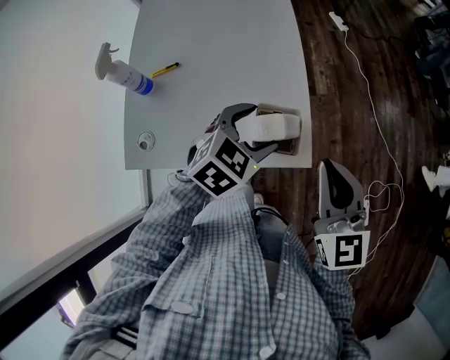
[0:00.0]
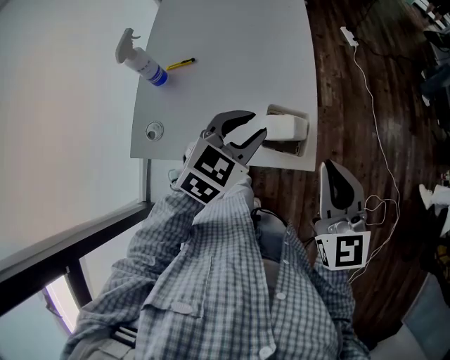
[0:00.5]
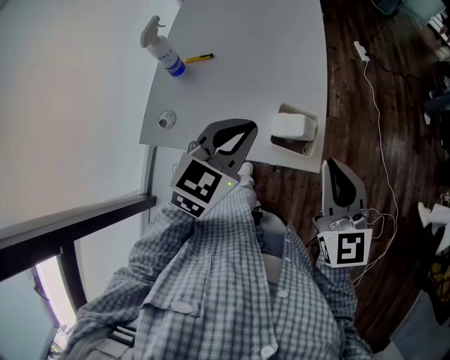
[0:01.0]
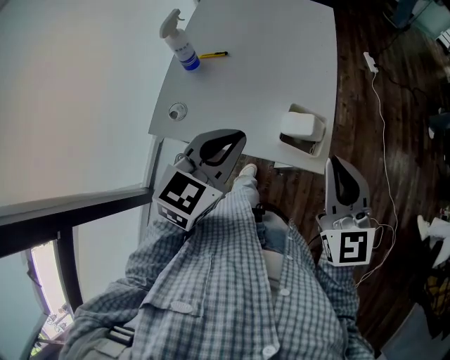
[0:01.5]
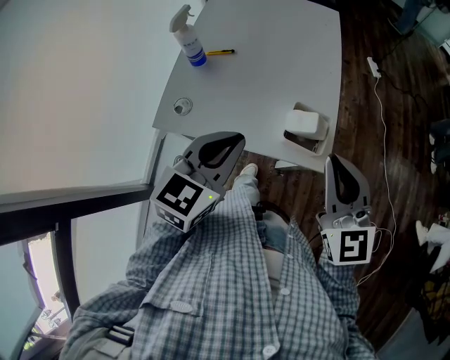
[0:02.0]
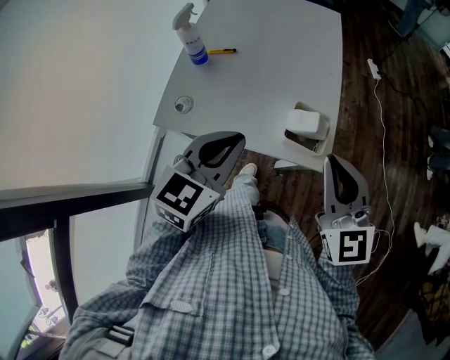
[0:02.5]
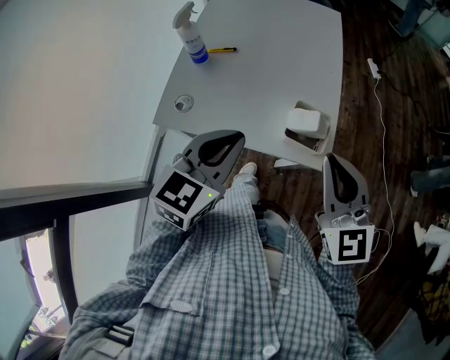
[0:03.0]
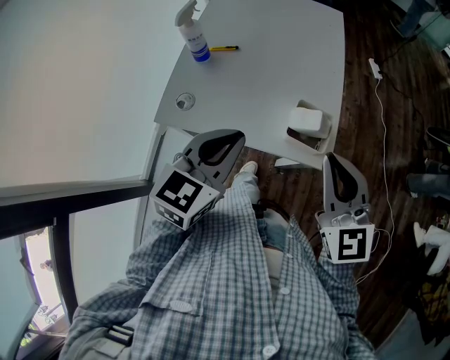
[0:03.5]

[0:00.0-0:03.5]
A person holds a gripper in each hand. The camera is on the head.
0.0 to 2.0 s: The left gripper goes approximately 20 cm to the left, backward and upward, swivels approximately 40 degrees, and closes its fingers. Meanwhile the right gripper travels to the left by some 5 cm.
2.0 to 3.5 s: There are only small adjustments of the grippers.

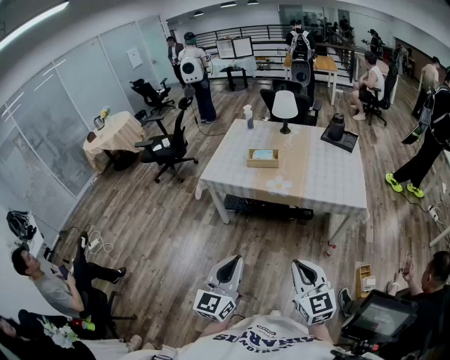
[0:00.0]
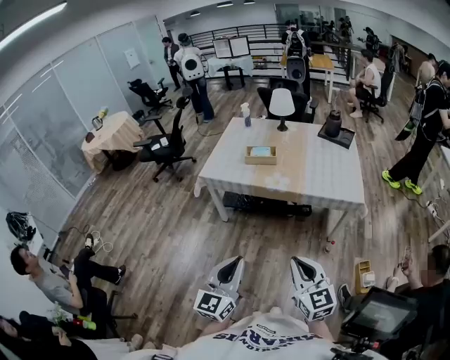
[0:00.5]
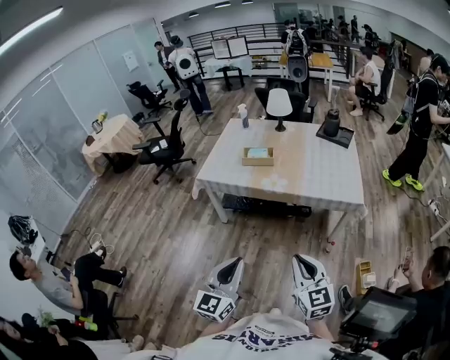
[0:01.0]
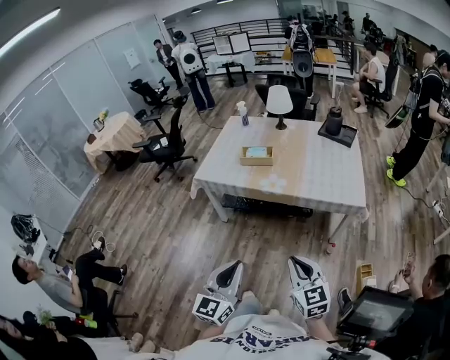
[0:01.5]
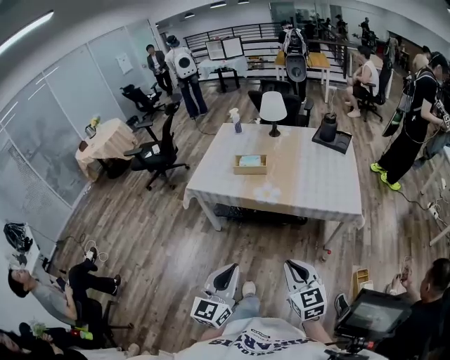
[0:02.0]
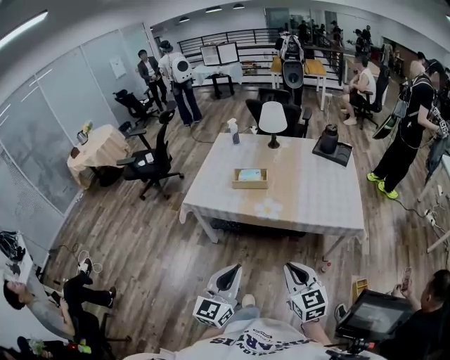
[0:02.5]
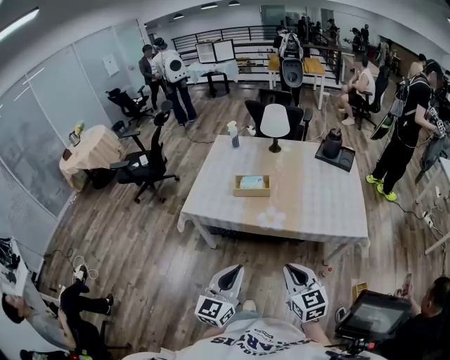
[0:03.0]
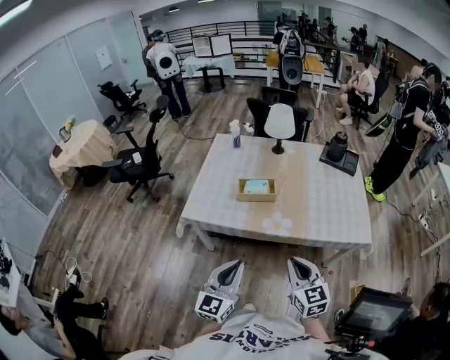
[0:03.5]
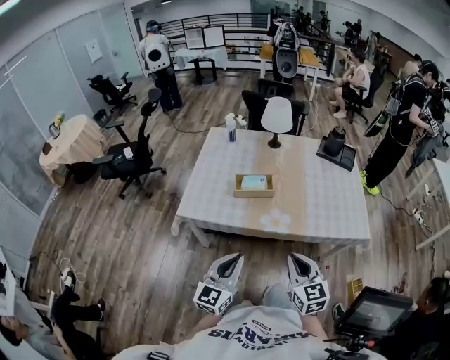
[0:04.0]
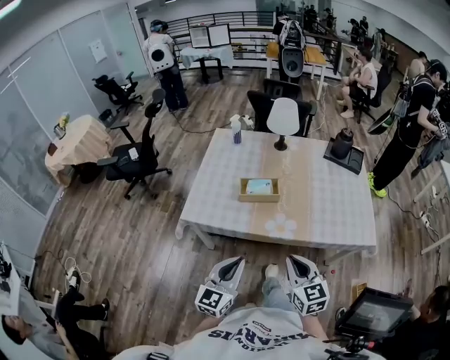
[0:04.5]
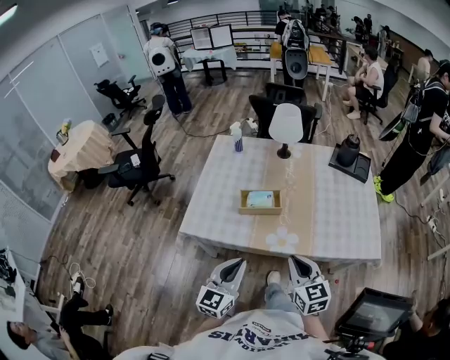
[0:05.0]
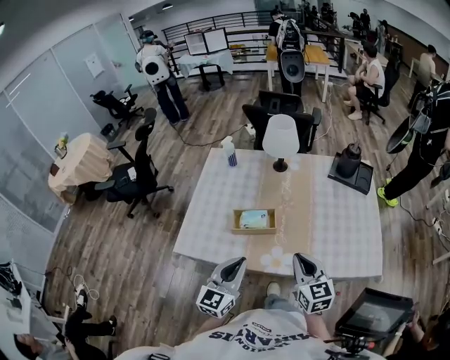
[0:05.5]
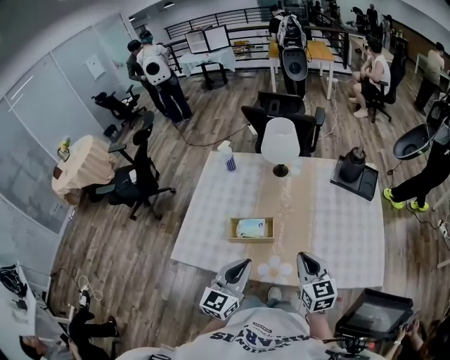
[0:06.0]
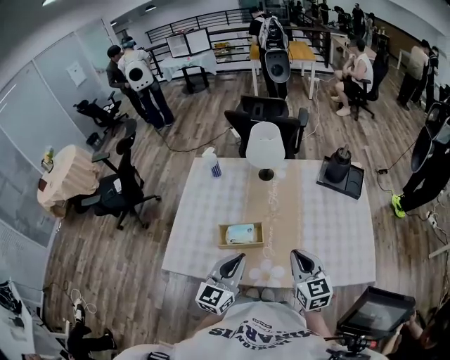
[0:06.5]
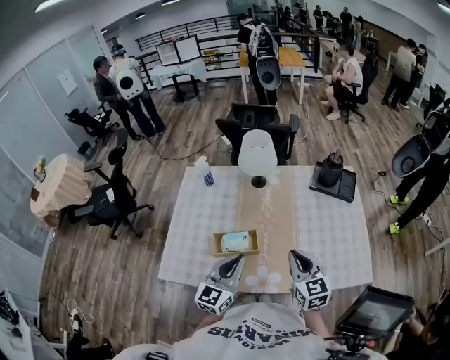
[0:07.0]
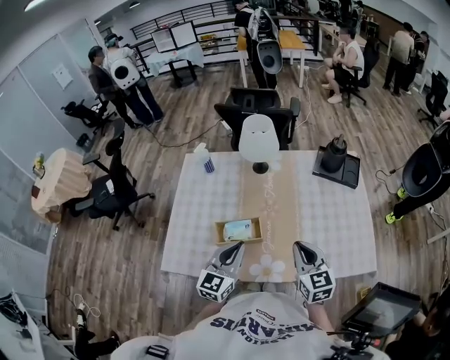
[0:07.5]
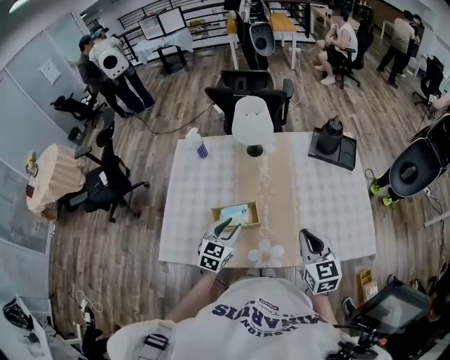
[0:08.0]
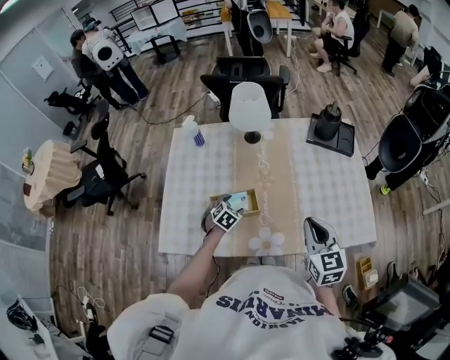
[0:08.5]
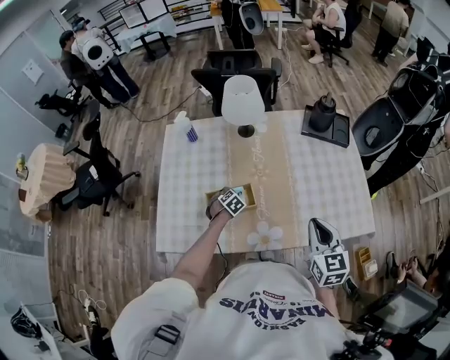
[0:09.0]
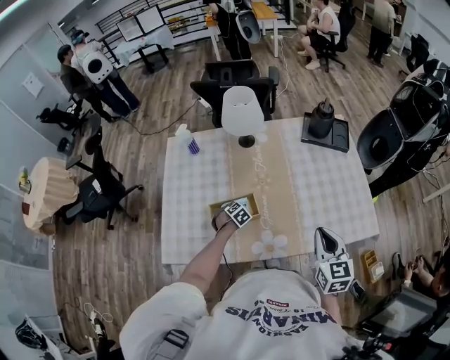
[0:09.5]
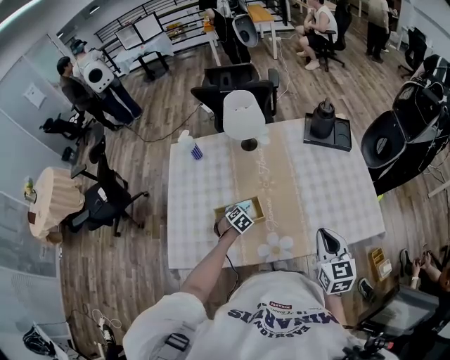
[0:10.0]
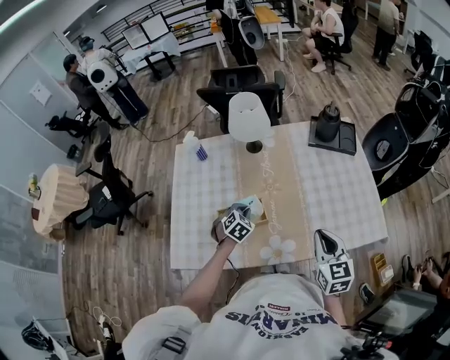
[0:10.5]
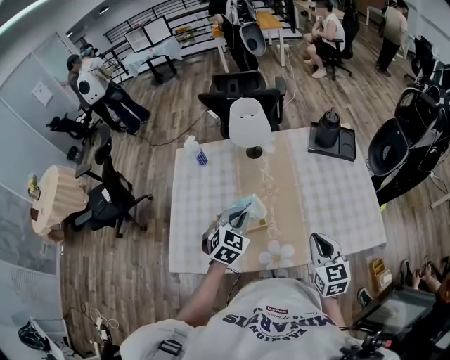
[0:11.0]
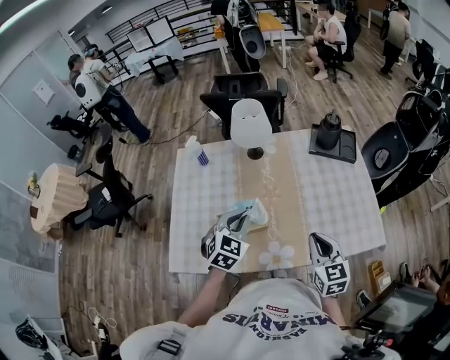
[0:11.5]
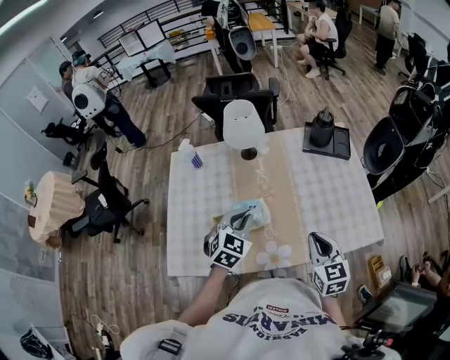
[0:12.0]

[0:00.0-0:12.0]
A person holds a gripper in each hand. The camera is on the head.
0.0 to 2.0 s: The right gripper travels forward and downward by some 10 cm. Meanwhile the left gripper moves forward and to the right, some 10 cm.
2.0 to 4.0 s: Both grippers travel together forward and to the left, about 30 cm.
4.0 to 6.0 s: The two grippers go about 30 cm forward.
6.0 to 8.0 s: The left gripper heads forward and downward, covering some 15 cm, changes its angle by some 30 degrees, and opens its fingers.
8.0 to 10.0 s: The left gripper shifts approximately 20 cm downward, tilts its fingers approximately 40 degrees downward, and closes its fingers; the right gripper shifts by some 5 cm.
10.0 to 12.0 s: The left gripper goes about 30 cm upward, and angles its fingers upward, by roughly 40 degrees.

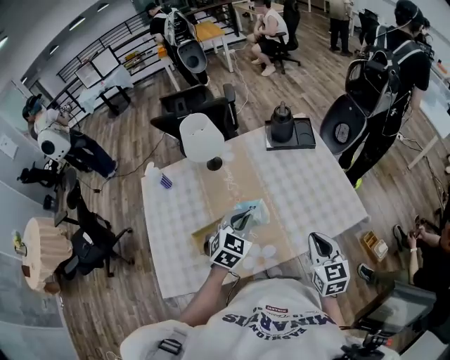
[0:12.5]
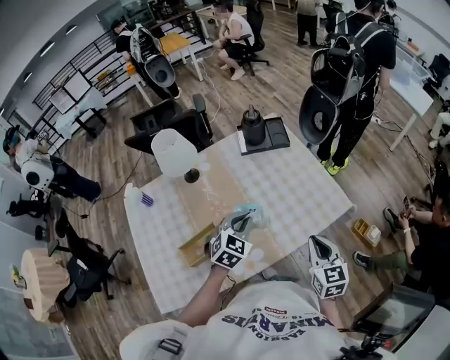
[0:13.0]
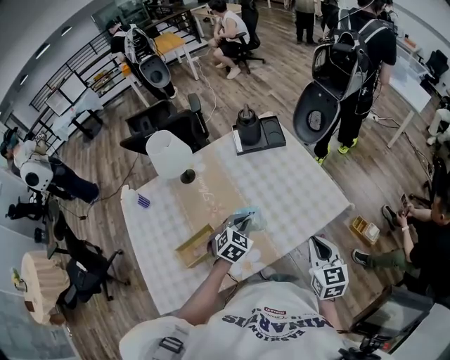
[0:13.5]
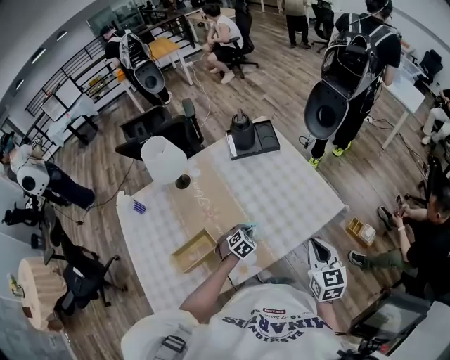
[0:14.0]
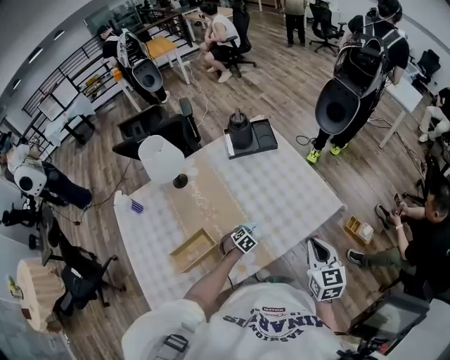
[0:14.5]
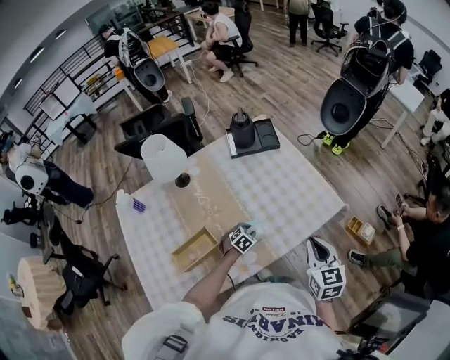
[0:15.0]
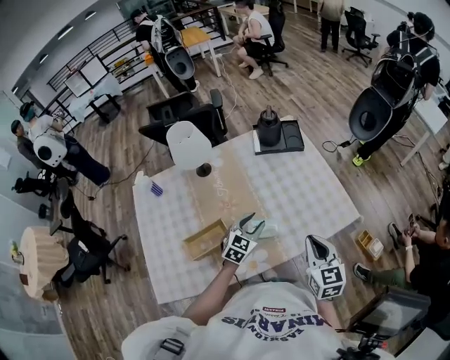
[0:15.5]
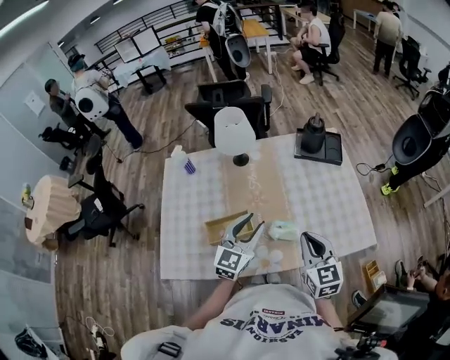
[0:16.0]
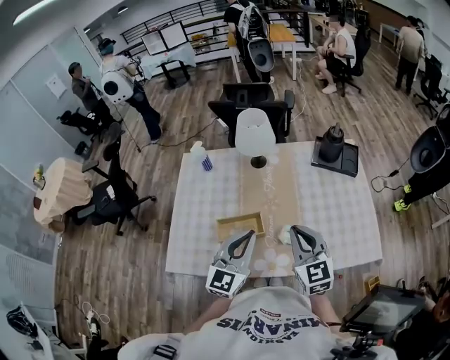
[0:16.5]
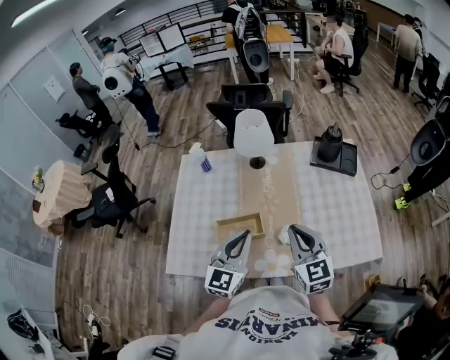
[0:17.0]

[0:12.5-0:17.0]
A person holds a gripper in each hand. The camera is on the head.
12.5 to 14.5 s: The left gripper heads downward, covering about 35 cm, and tips its fingers downward by about 30 degrees. Meanwhile the right gripper goes some 10 cm to the right.
14.5 to 17.0 s: The right gripper shifts by about 25 cm, and changes its angle by about 40 degrees; the left gripper heads upward, covering roughly 40 cm, points its fingers about 60 degrees further upward, and opens, then closes once more.

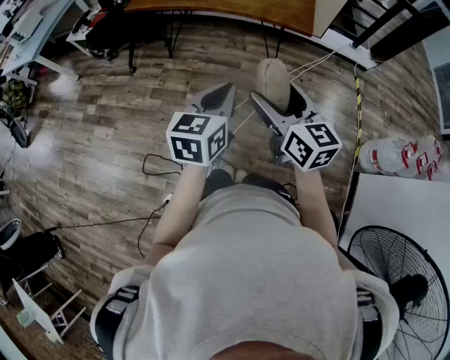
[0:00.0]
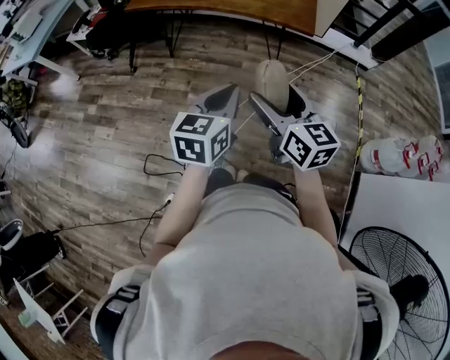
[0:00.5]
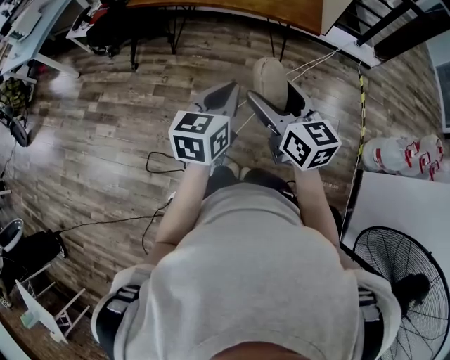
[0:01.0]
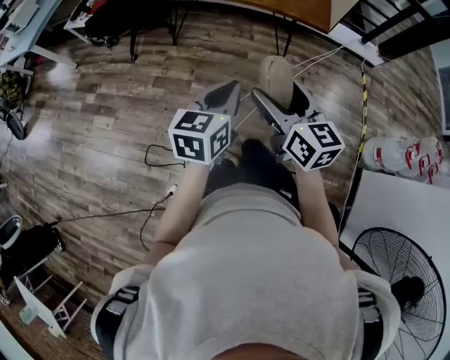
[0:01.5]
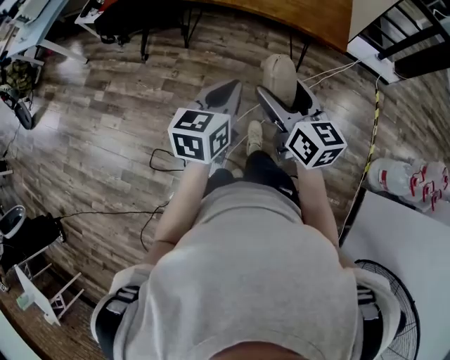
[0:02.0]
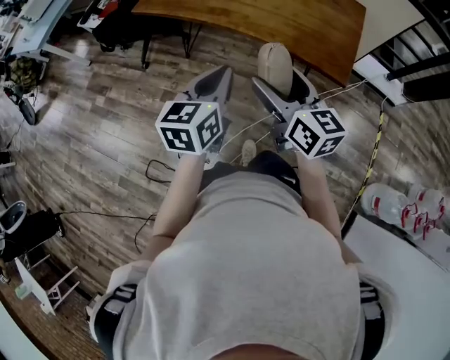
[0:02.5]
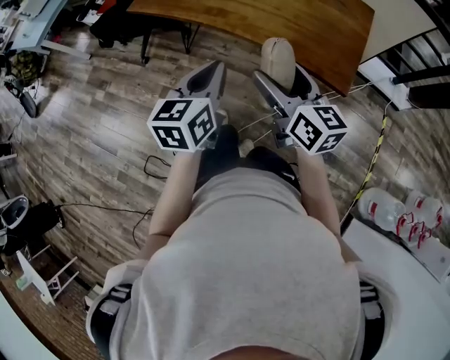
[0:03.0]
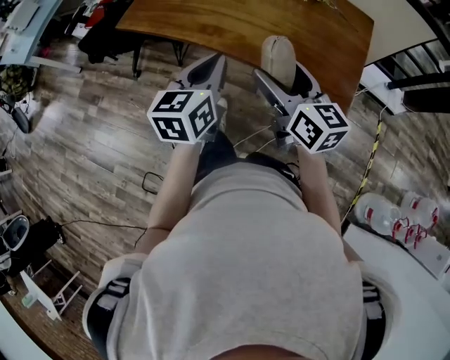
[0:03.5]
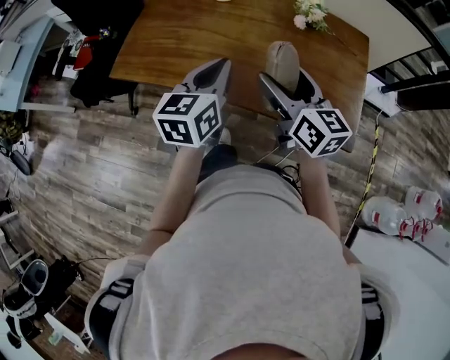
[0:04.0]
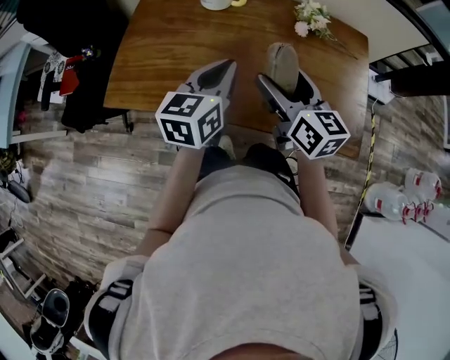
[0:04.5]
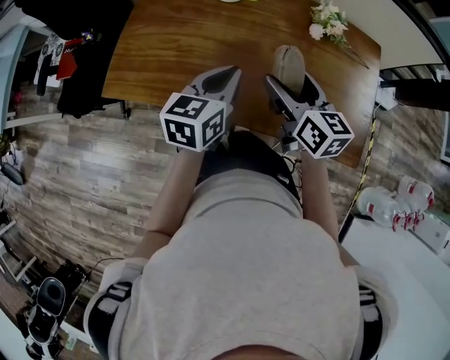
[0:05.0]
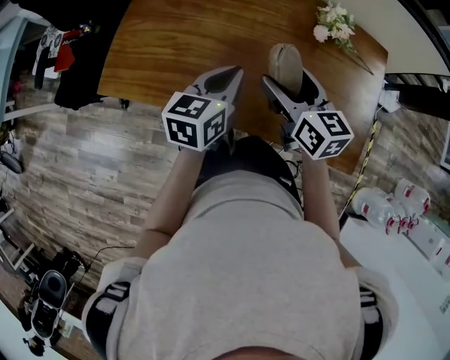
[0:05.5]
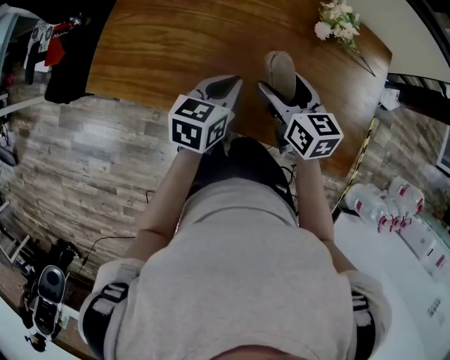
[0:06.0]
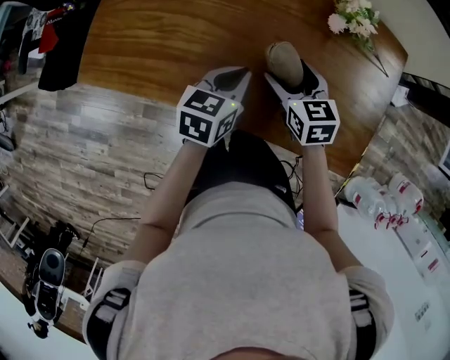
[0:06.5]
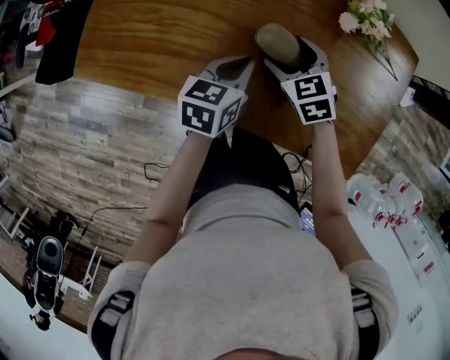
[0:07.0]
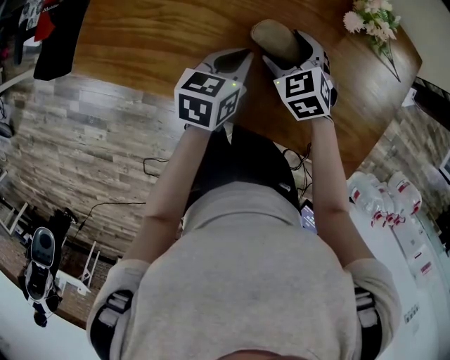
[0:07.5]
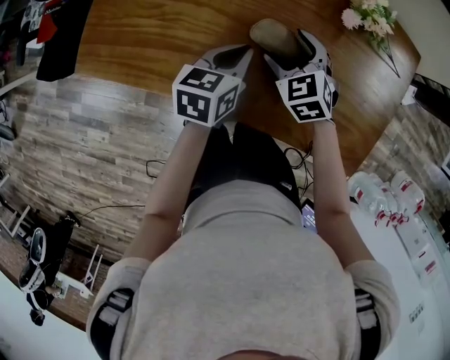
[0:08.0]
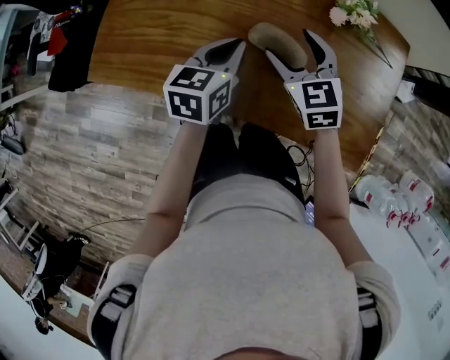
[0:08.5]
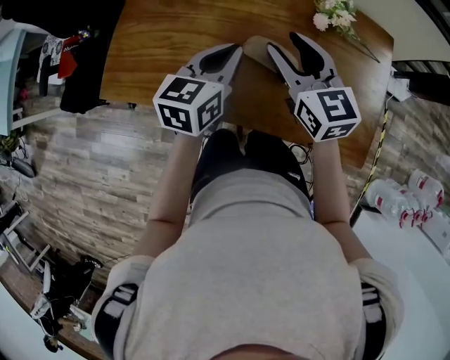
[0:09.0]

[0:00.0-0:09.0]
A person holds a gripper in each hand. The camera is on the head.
0.0 to 2.0 s: The right gripper heads forward, covering some 15 cm. Meanwhile the left gripper moves forward and to the left, about 15 cm.
2.0 to 4.5 s: The pair of grippers is taken forward, approximately 60 cm.
4.5 to 7.0 s: The left gripper shifts roughly 20 cm downward, and rotates approximately 20 degrees. The right gripper is displaced downward and forward by approximately 25 cm, and points its fingers some 40 degrees further downward.
7.0 to 9.0 s: The two grippers go about 15 cm upward. The right gripper tips its fingers upward by some 30 degrees, and closes.
